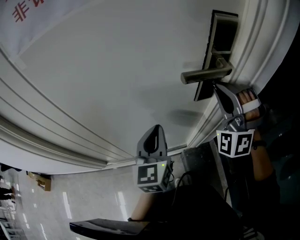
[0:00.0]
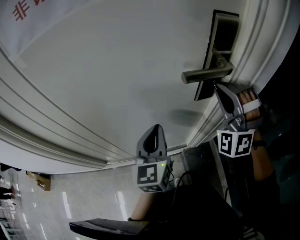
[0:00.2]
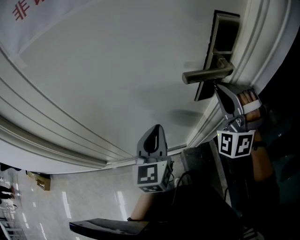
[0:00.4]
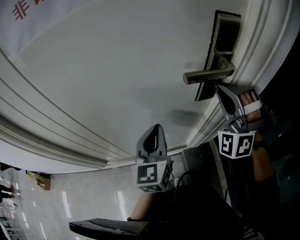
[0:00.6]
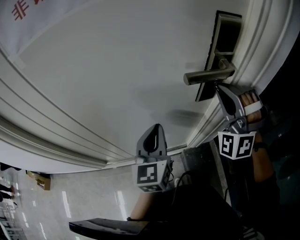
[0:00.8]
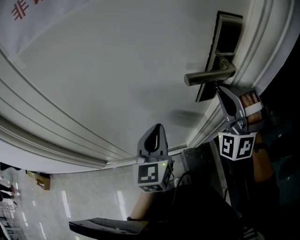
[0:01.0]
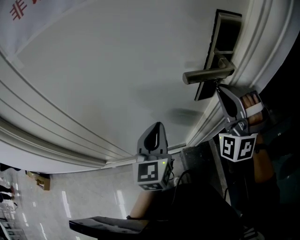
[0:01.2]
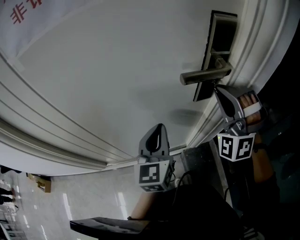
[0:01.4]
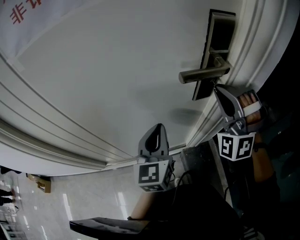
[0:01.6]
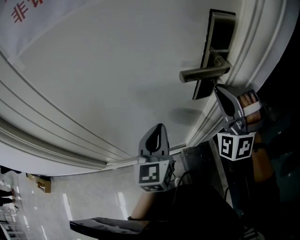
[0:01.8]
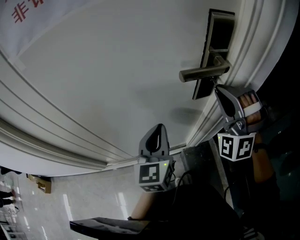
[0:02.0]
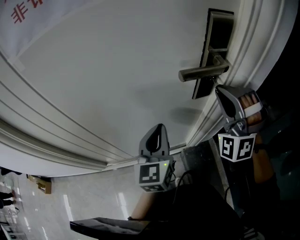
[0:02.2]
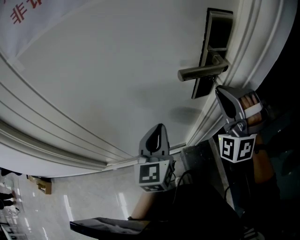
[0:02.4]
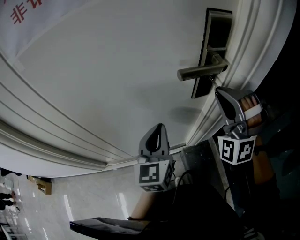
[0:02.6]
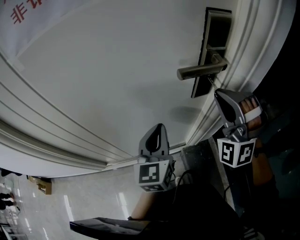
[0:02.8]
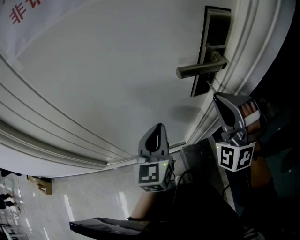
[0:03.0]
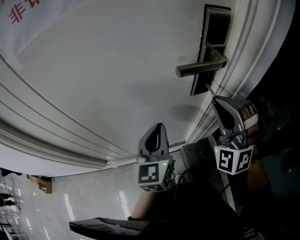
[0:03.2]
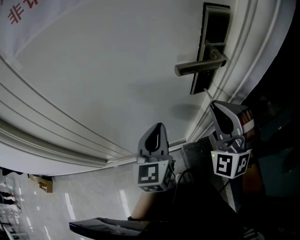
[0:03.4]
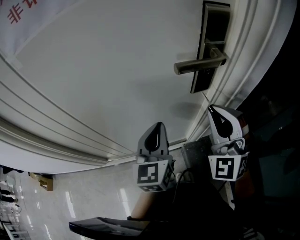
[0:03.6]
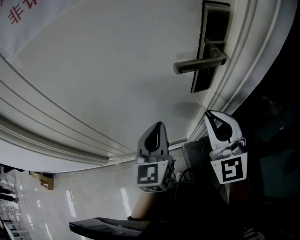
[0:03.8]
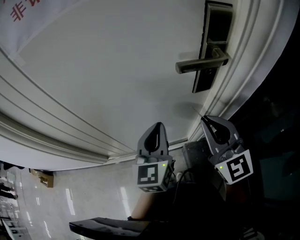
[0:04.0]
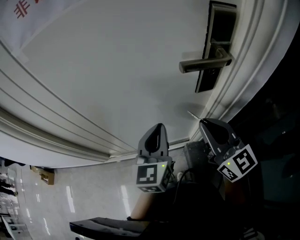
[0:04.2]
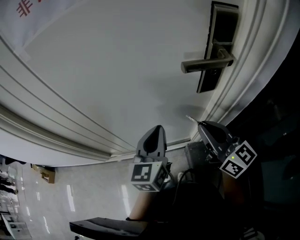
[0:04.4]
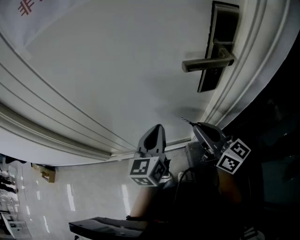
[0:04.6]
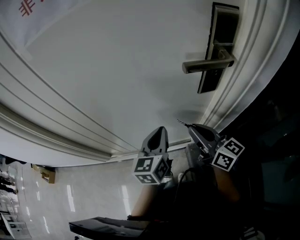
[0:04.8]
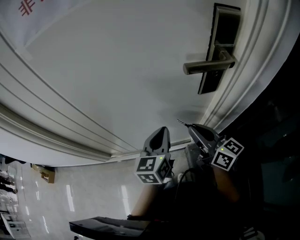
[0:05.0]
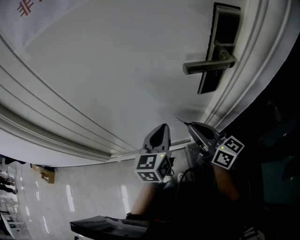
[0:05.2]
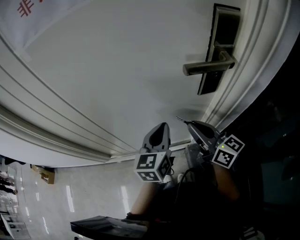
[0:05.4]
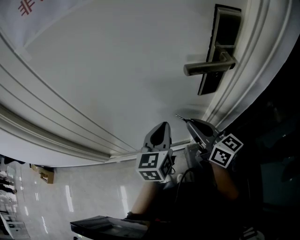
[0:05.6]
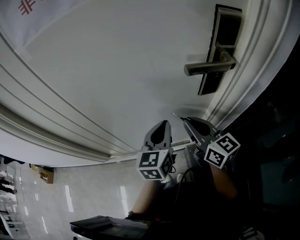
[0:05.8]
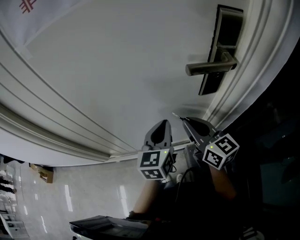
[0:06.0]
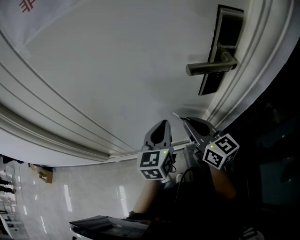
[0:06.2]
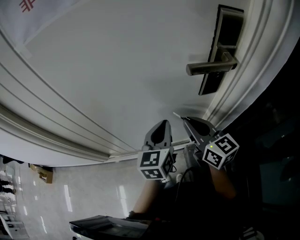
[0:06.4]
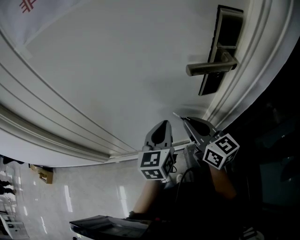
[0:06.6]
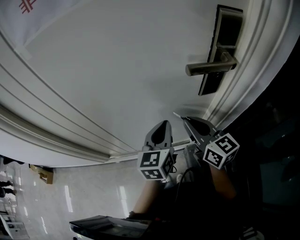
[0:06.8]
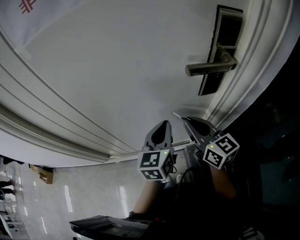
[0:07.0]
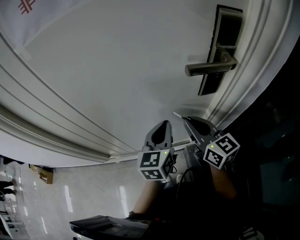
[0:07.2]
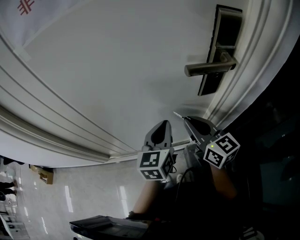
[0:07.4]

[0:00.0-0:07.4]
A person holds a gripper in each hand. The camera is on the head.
0:00.0 to 0:01.4: The two grippers keep their place.
0:01.4 to 0:03.0: The grippers move only a little.
0:03.0 to 0:04.4: The right gripper is displaced downward by approximately 5 cm, and rotates around the line of its fingers by about 100 degrees, clockwise from behind.
0:04.4 to 0:06.0: The right gripper travels forward by about 5 cm. The left gripper ends up approximately 5 cm from where it was.
0:06.0 to 0:07.4: Both grippers stay put.

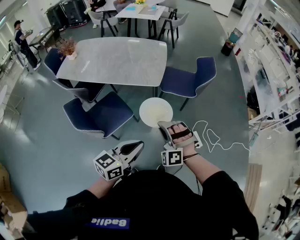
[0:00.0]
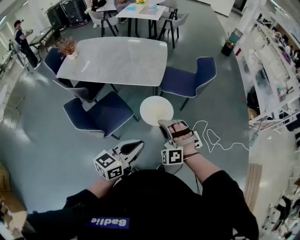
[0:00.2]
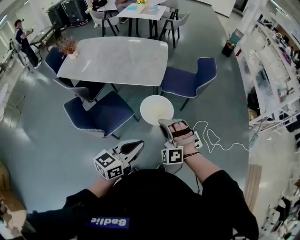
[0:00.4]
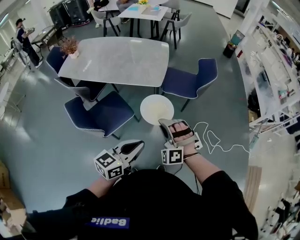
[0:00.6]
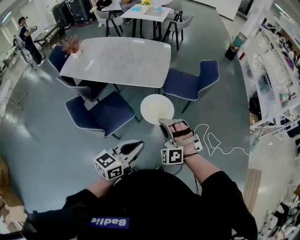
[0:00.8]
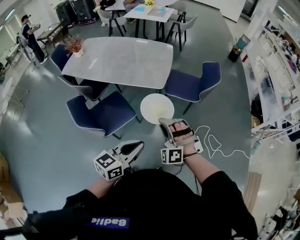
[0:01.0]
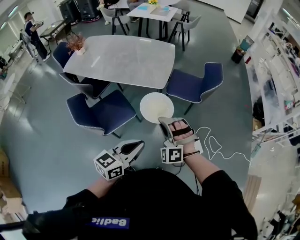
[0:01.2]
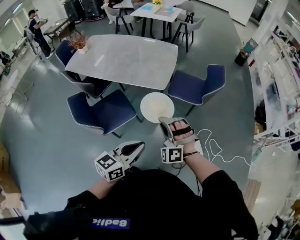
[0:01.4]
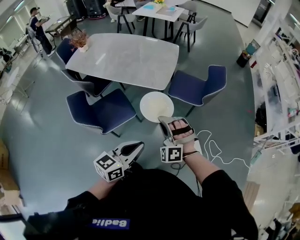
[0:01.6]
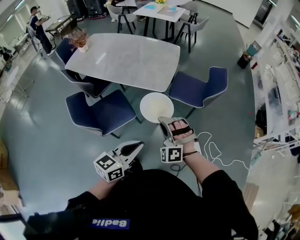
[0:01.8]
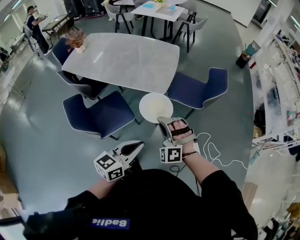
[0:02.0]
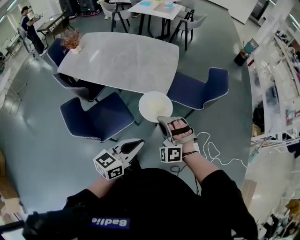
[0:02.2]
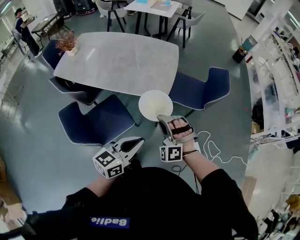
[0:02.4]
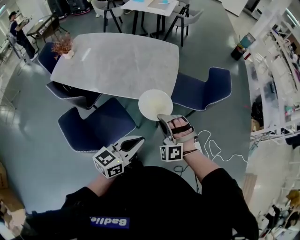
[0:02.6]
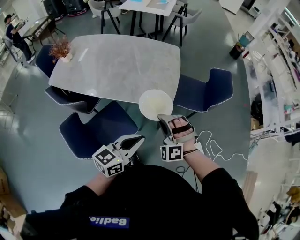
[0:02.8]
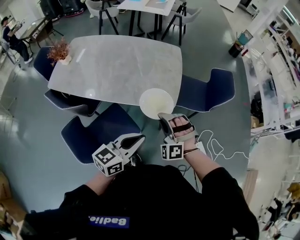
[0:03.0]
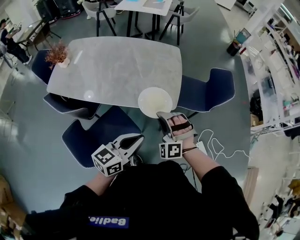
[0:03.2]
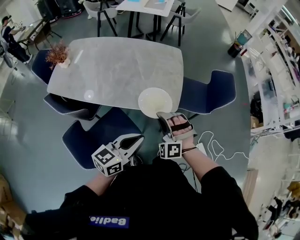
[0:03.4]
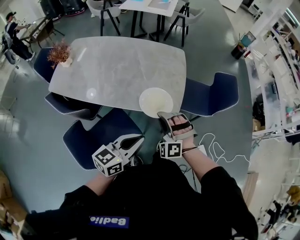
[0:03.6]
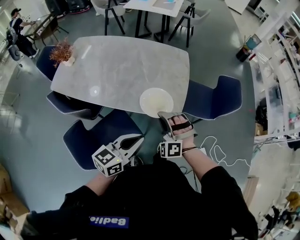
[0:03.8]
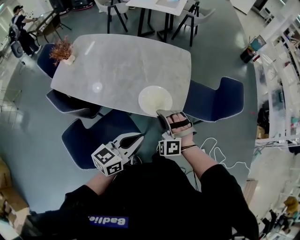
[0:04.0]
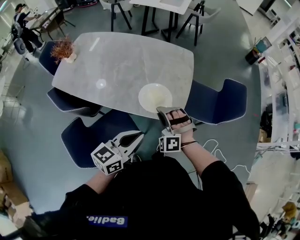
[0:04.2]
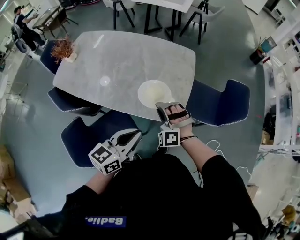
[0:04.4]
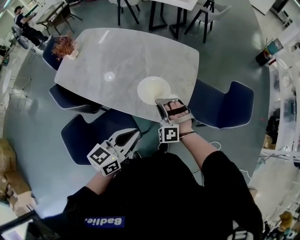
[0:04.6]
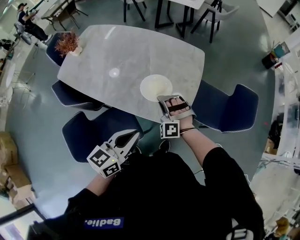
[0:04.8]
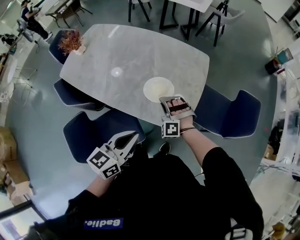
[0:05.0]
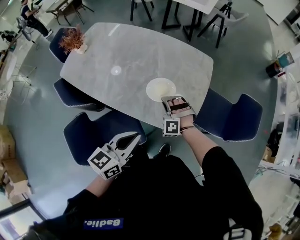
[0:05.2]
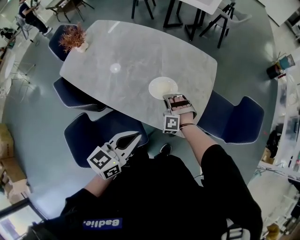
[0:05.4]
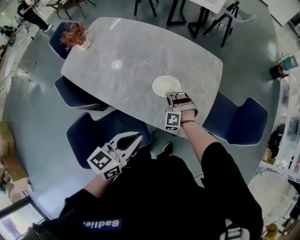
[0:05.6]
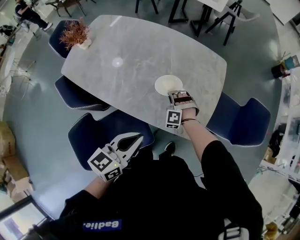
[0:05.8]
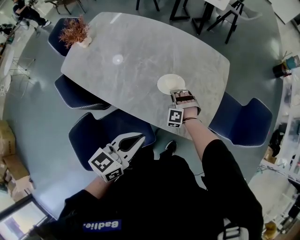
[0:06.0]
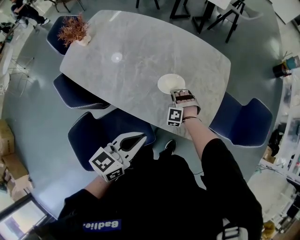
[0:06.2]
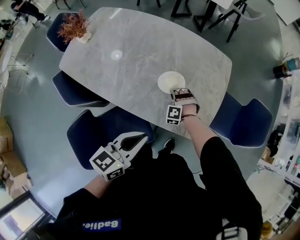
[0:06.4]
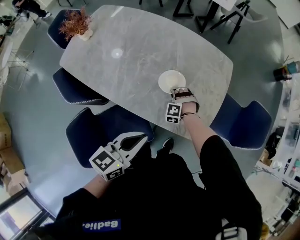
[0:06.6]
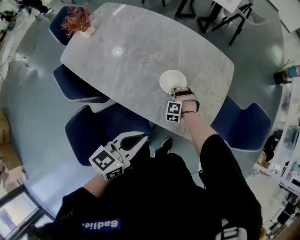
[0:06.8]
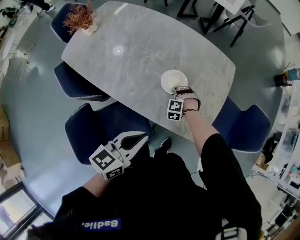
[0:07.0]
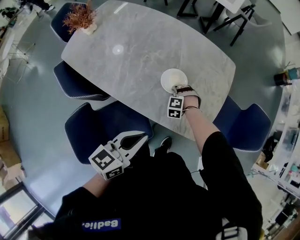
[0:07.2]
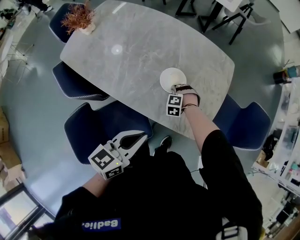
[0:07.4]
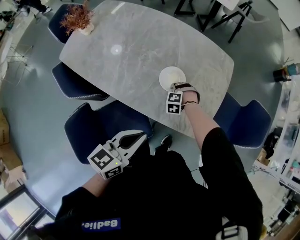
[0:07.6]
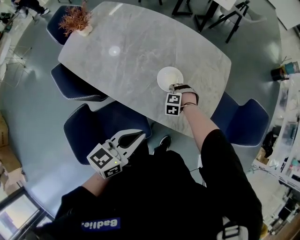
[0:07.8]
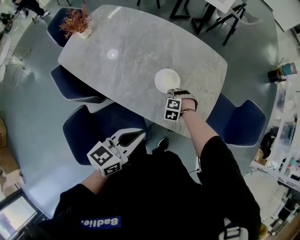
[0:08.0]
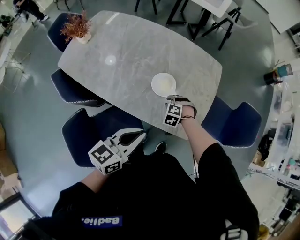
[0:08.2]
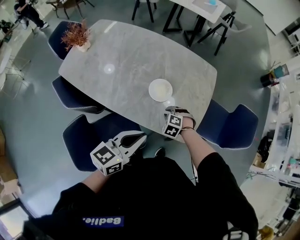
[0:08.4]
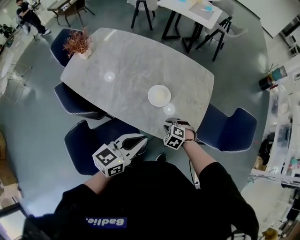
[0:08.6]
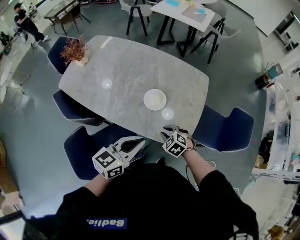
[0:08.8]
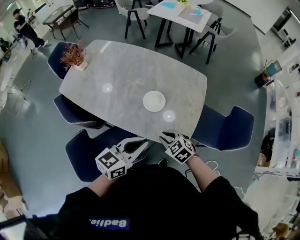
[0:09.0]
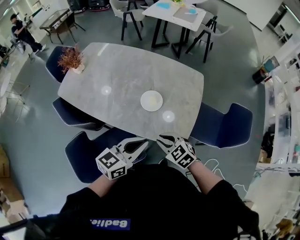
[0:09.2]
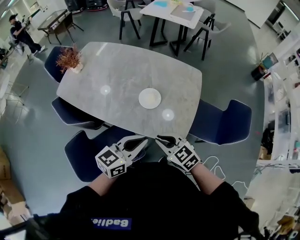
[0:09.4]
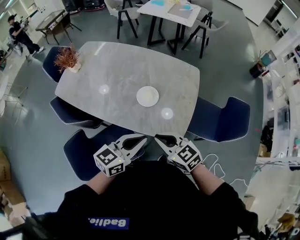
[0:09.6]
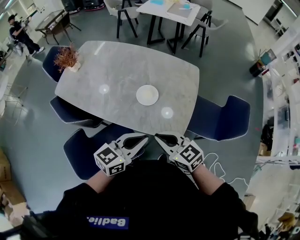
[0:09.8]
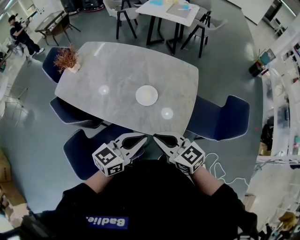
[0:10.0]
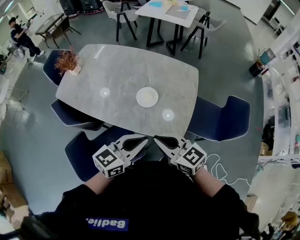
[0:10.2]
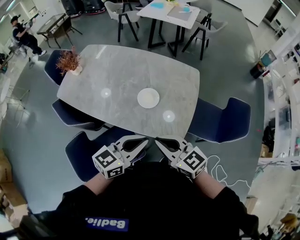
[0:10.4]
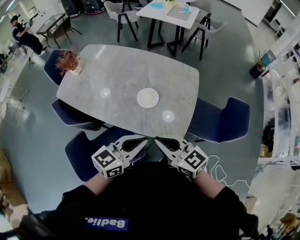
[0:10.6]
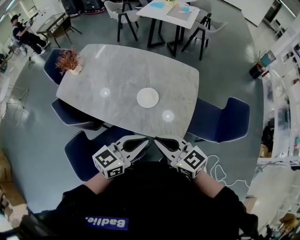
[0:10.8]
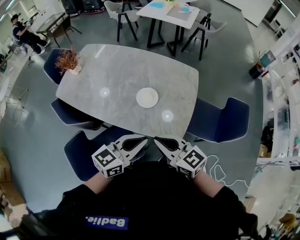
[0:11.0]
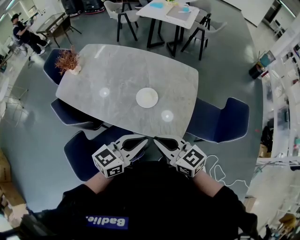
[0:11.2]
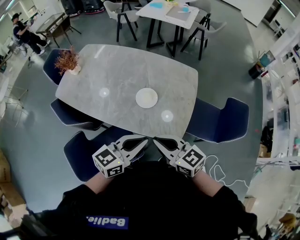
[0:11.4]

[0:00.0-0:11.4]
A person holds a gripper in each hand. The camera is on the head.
0:01.4 to 0:02.8: The left gripper shifts by about 25 cm.
0:02.8 to 0:04.2: The left gripper changes place by approximately 15 cm.
0:04.2 to 0:05.6: The left gripper shifts by roughly 15 cm.
0:07.2 to 0:08.6: The left gripper ends up roughly 5 cm from where it was.
0:08.6 to 0:10.0: The left gripper moves roughly 5 cm.

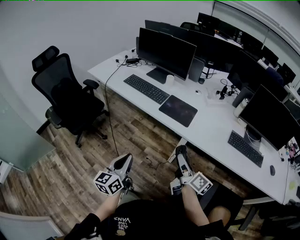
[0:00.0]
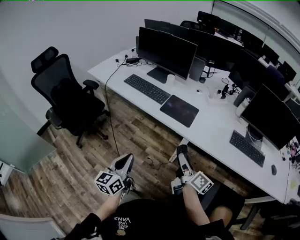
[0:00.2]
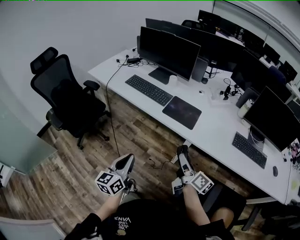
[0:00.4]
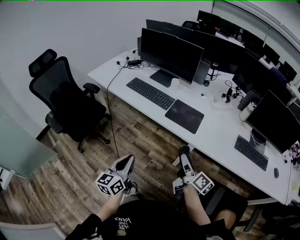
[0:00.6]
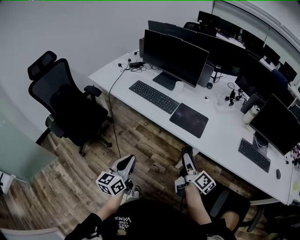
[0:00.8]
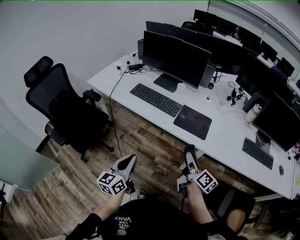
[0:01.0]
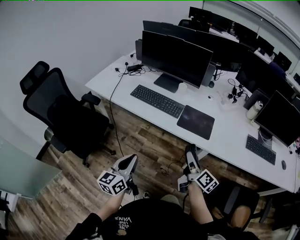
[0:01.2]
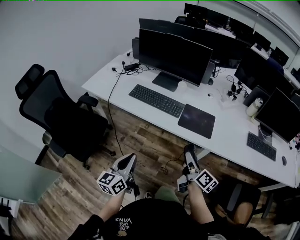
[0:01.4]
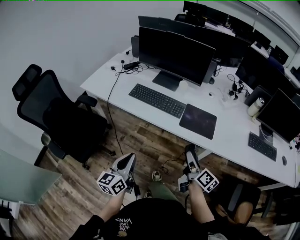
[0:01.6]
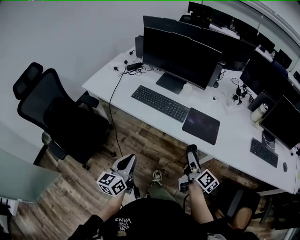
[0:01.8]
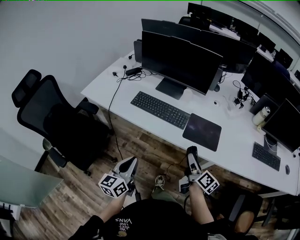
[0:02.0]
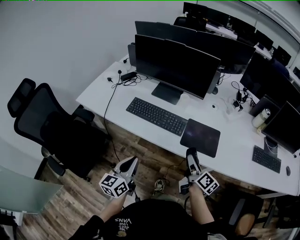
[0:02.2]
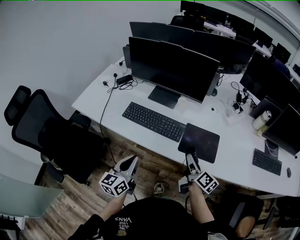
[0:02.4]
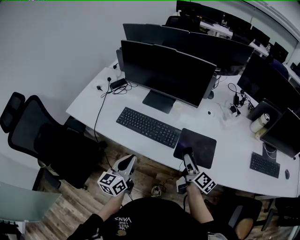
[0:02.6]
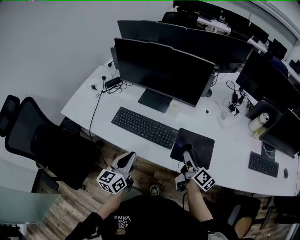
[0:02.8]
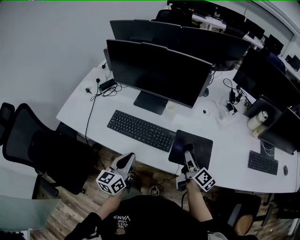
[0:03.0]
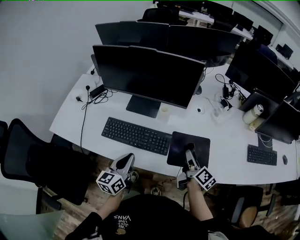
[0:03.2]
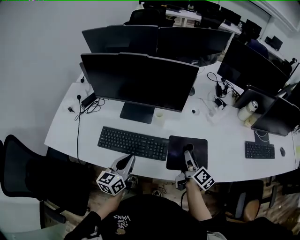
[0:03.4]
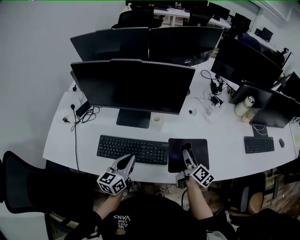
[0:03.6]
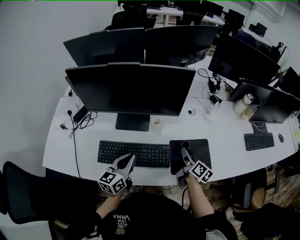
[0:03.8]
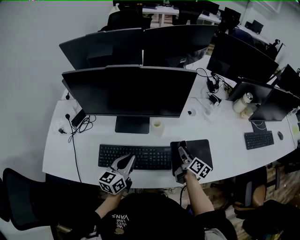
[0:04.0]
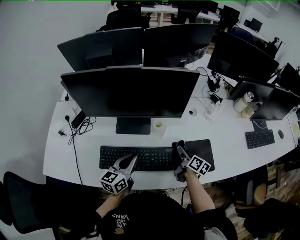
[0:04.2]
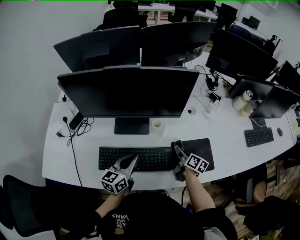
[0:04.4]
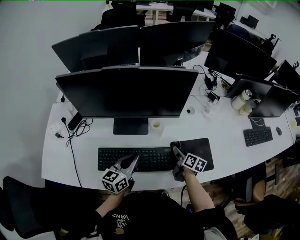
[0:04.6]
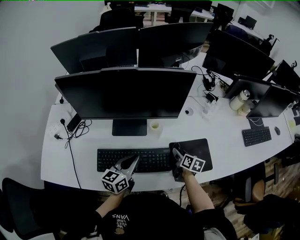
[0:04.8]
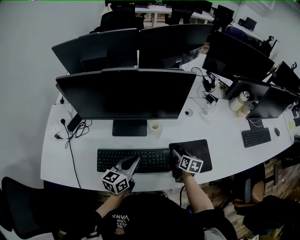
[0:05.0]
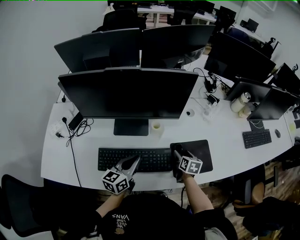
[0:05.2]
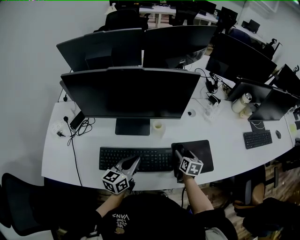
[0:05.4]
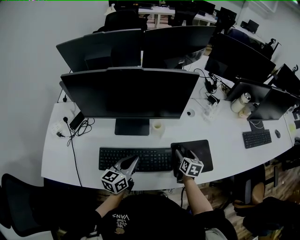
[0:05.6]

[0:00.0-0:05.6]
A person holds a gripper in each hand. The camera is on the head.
0:00.0 to 0:01.4: Both grippers travel together to the left and forward, roughly 20 cm.
0:01.4 to 0:02.8: The two grippers go about 25 cm forward.
0:02.8 to 0:04.2: The left gripper moves forward, roughly 20 cm, and swivels about 30 degrees, while the right gripper is displaced forward and downward by roughly 15 cm, and turns by roughly 20 degrees.
0:04.2 to 0:05.6: The right gripper swivels roughly 40 degrees, and opens up.
